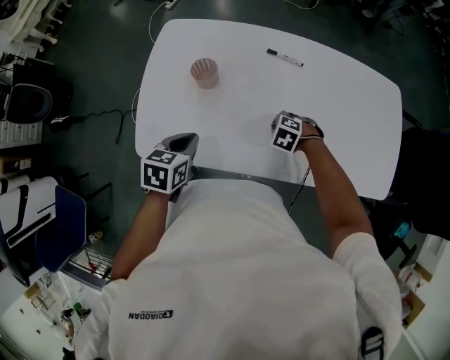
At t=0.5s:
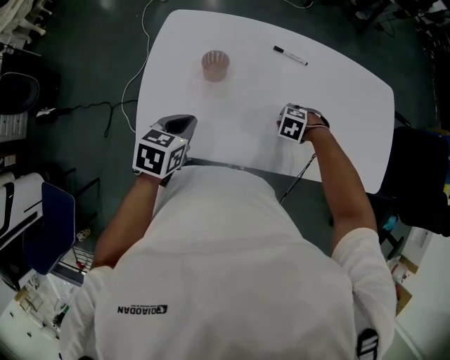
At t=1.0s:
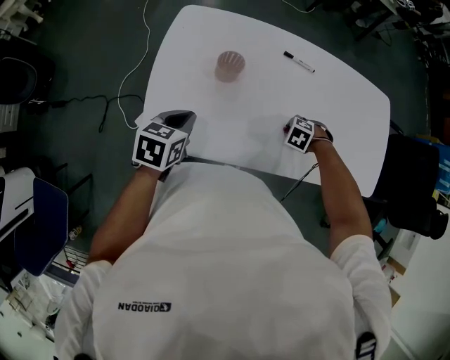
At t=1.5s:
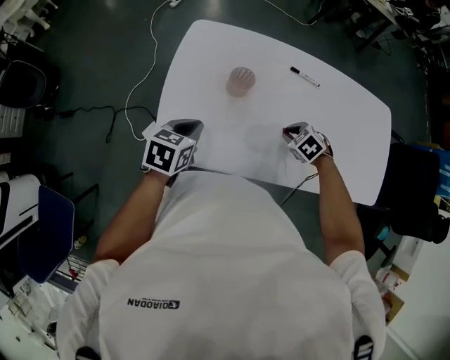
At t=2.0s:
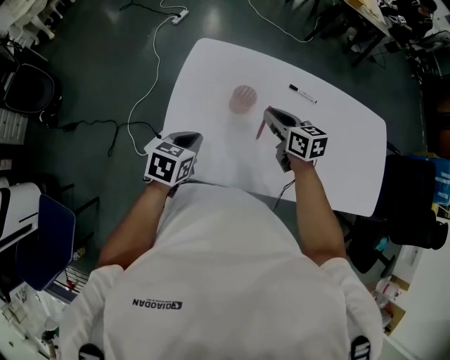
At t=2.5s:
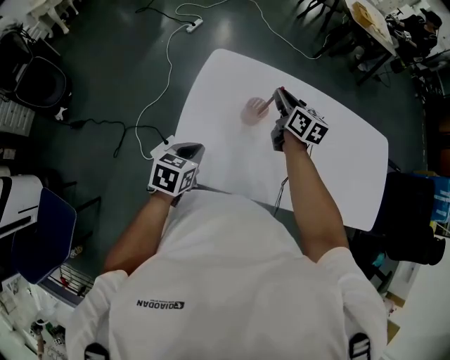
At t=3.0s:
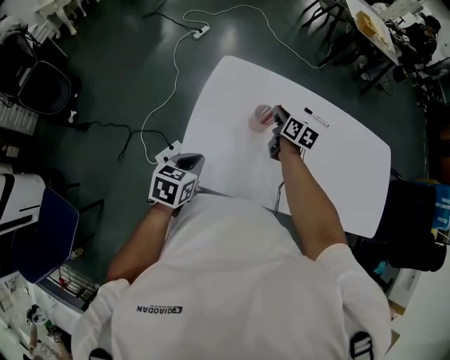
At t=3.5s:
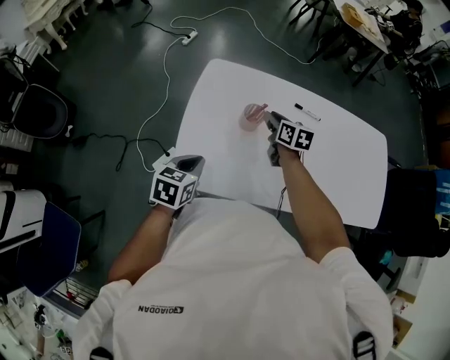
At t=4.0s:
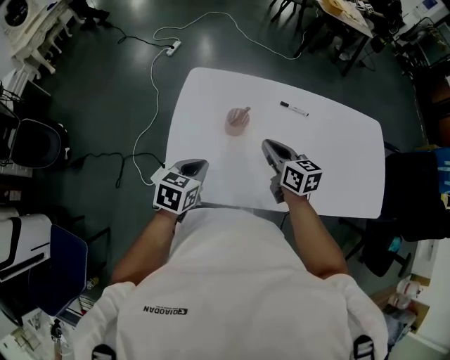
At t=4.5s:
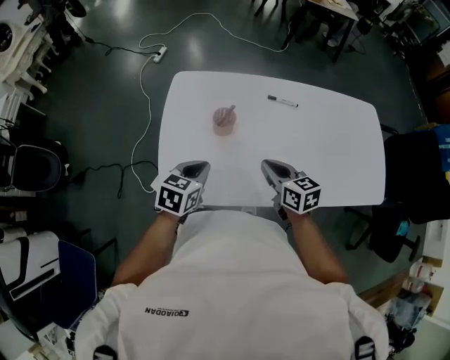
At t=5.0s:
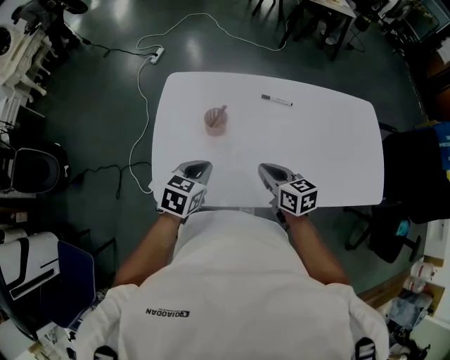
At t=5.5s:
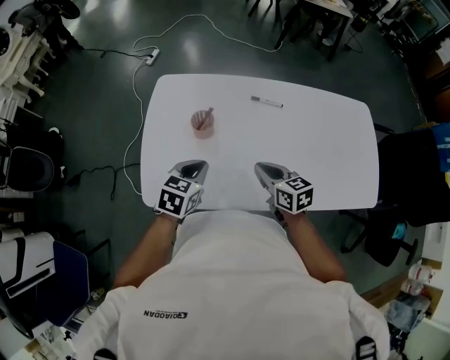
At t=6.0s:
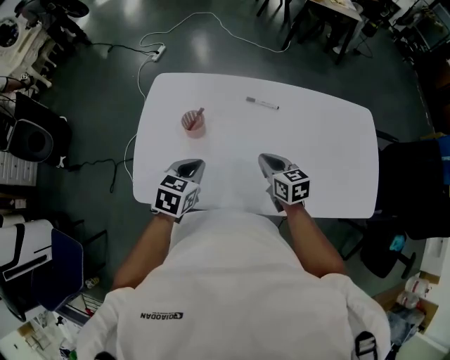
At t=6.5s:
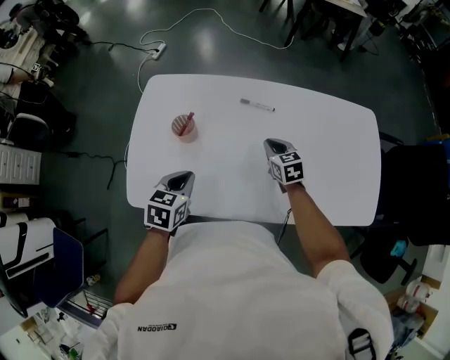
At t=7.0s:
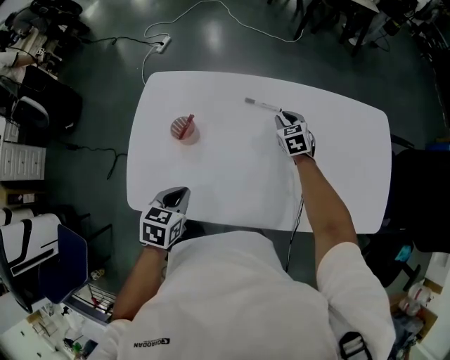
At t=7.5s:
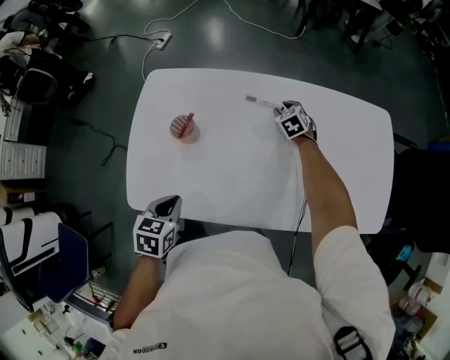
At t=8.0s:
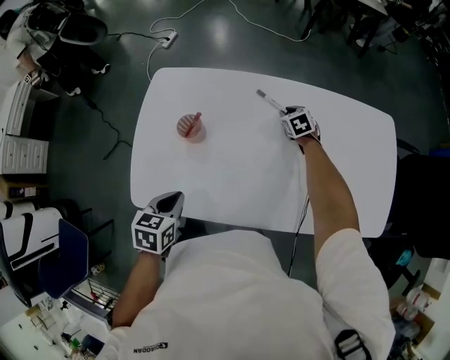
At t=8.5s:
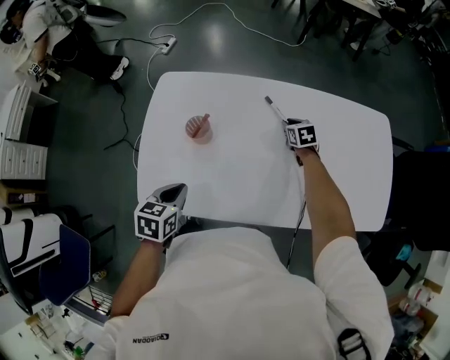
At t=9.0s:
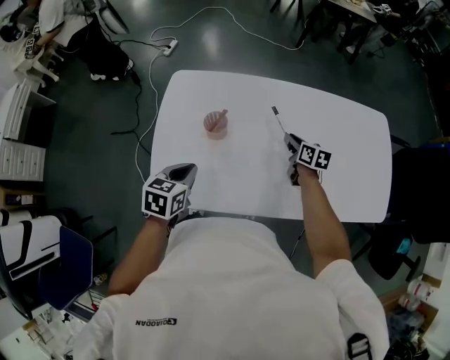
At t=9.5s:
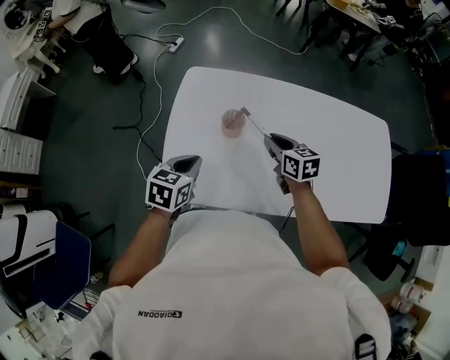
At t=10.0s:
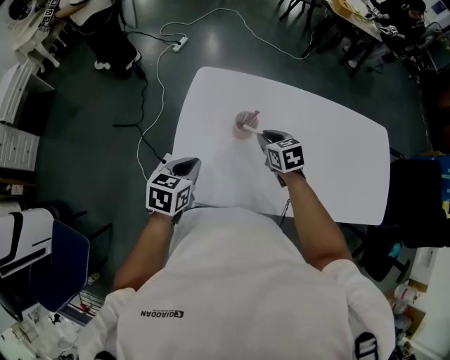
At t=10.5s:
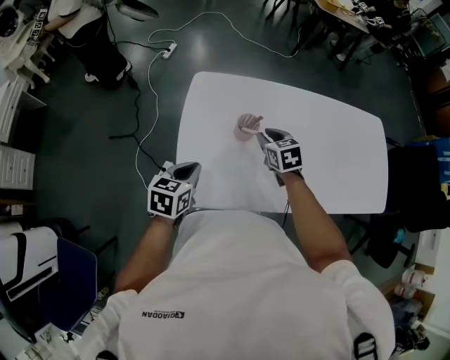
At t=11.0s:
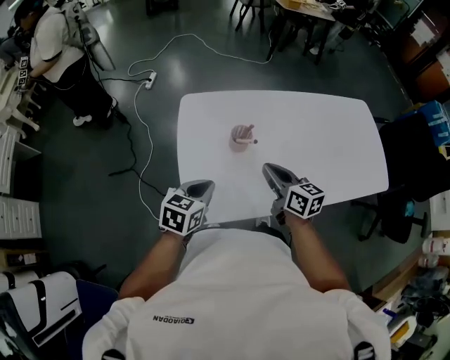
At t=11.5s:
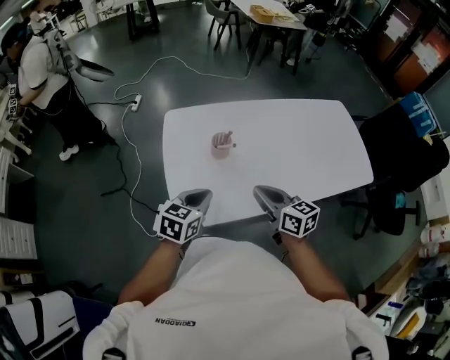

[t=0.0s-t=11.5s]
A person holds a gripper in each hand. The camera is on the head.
t=0.0s to t=2.0s: The right gripper changes place by roughly 30 cm, points its fingers approximately 50 degrees further upward, and opens and closes again, while the left gripper shifts by about 15 cm.
t=2.0s to t=4.0s: The right gripper travels backward by some 5 cm; the left gripper goes to the left and returns, approximately 5 cm each way.
t=4.0s to t=6.0s: Both grippers travel together to the right, approximately 20 cm.
t=6.0s to t=7.5s: The left gripper moves some 5 cm. The right gripper moves forward and downward, roughly 30 cm, swivels approximately 40 degrees, and opens up.
t=7.5s to t=9.5s: The right gripper travels to the left, backward and upward by about 35 cm, and swivels roughly 40 degrees. Meanwhile the left gripper shifts approximately 15 cm to the left.
t=9.5s to t=11.5s: The right gripper travels backward and upward by approximately 25 cm. The left gripper goes approximately 10 cm backward, goes to the left and returns, approximately 10 cm each way, and rotates roughly 20 degrees.

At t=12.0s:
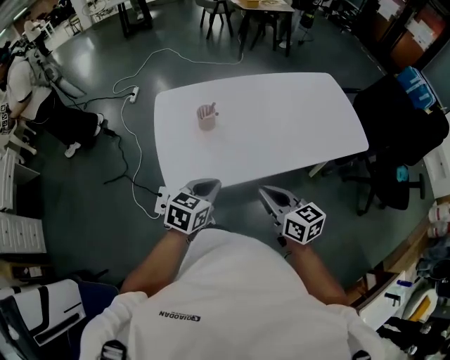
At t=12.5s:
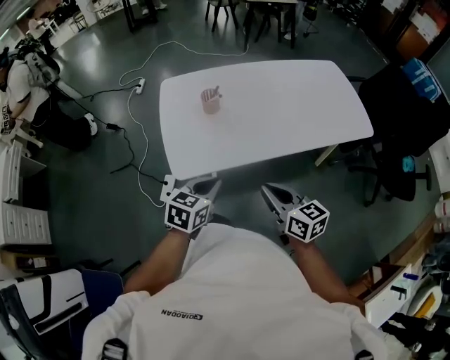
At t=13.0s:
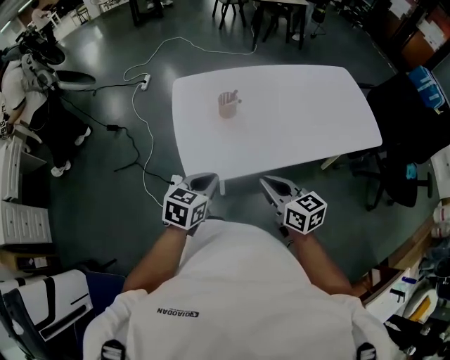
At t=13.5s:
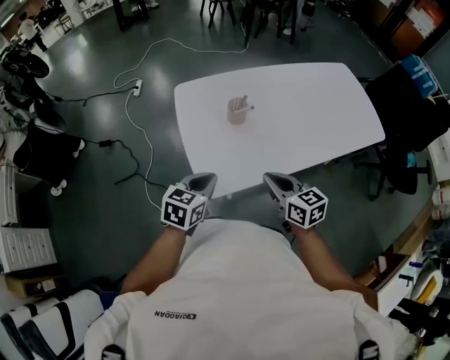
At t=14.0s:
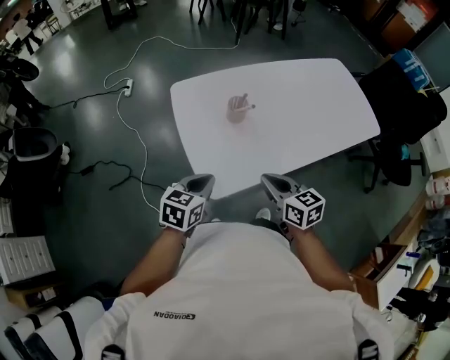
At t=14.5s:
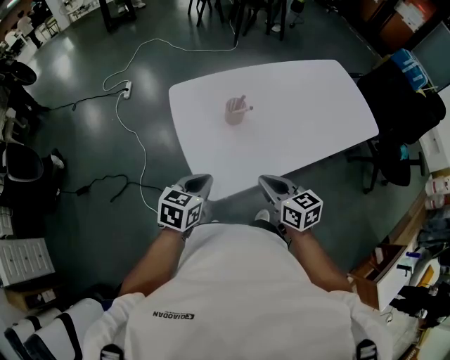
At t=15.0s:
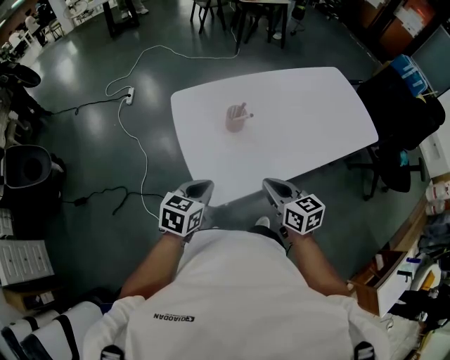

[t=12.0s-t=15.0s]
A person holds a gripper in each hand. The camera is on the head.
t=12.0s to t=13.5s: Both grippers move to the left, some 15 cm.
t=13.5s to t=15.0s: The grippers stay close to where they were, moving slightly.

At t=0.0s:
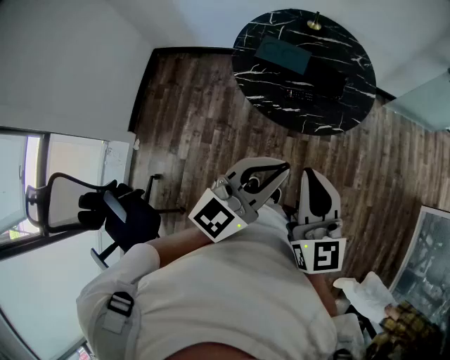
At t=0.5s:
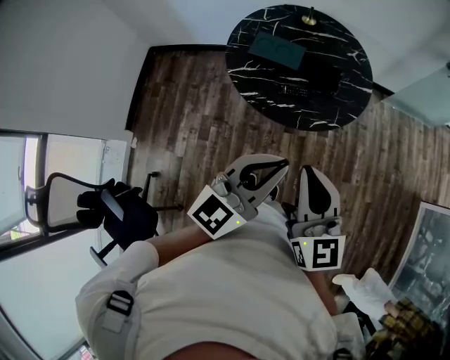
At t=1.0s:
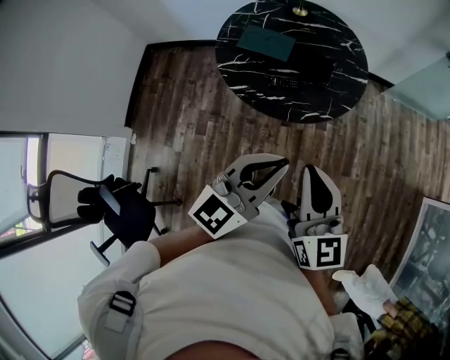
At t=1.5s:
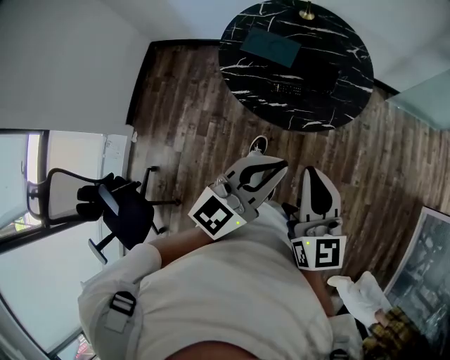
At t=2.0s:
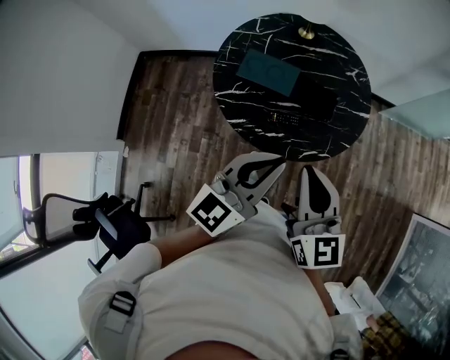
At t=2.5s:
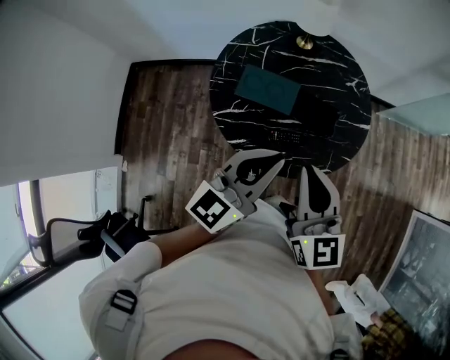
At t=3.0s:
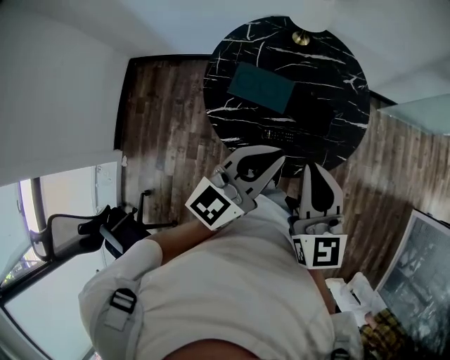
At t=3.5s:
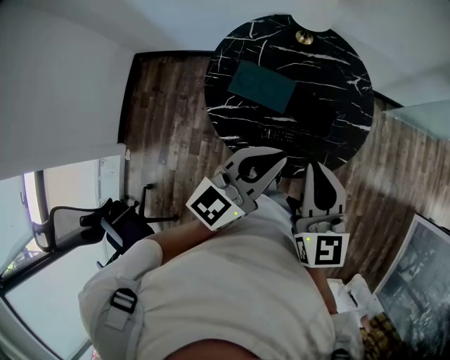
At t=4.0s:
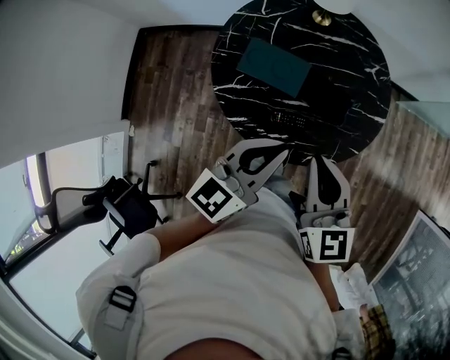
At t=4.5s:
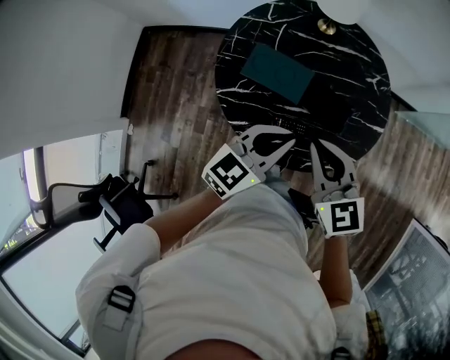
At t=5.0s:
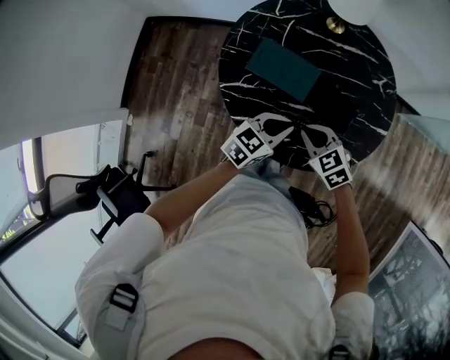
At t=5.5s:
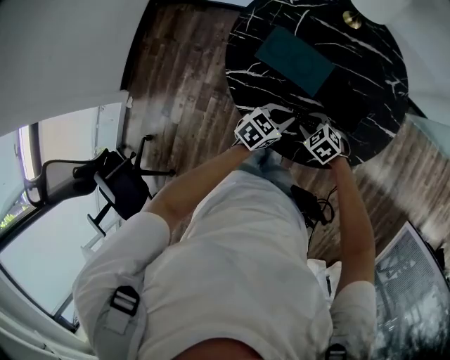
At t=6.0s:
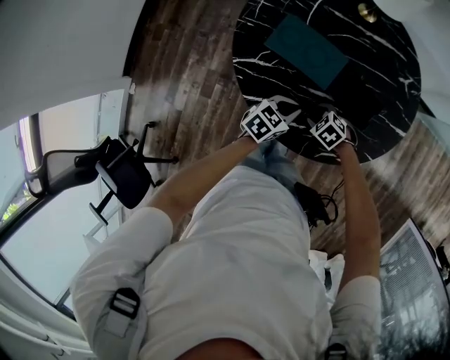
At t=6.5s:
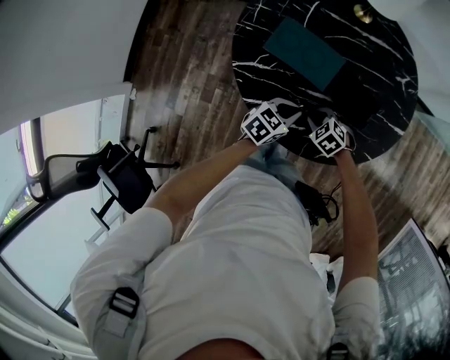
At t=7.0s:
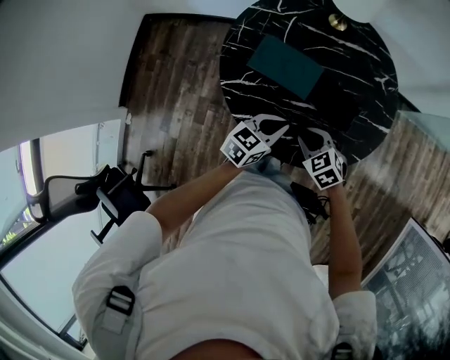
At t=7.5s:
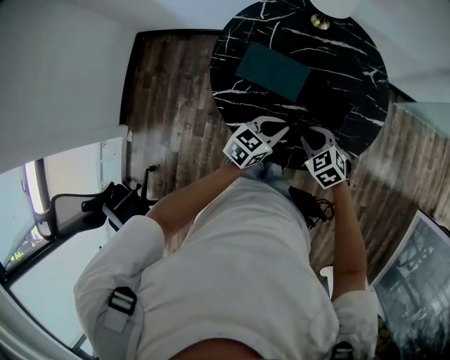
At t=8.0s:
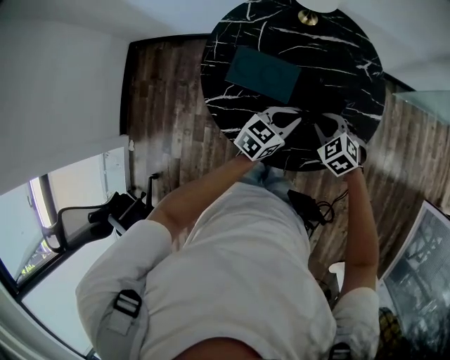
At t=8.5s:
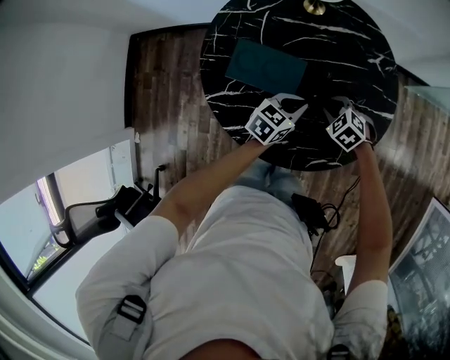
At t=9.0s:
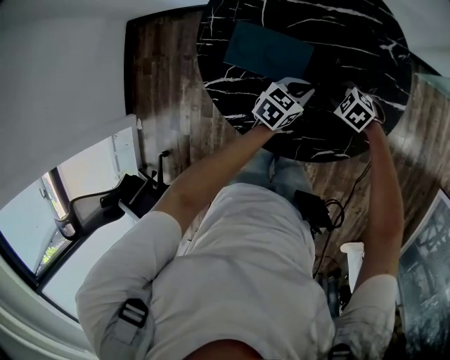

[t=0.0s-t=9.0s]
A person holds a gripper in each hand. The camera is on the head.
t=0.0s to t=2.0s: Both grippers move forward, some 20 cm.
t=2.0s to t=4.5s: Both grippers travel together forward and downward, approximately 20 cm. The right gripper changes its angle by roughly 20 degrees.
t=4.5s to t=7.0s: Both grippers move downward, about 20 cm. The right gripper tilts its fingers roughly 30 degrees downward, and opens, then closes again.
t=7.0s to t=9.0s: The left gripper ends up approximately 20 cm from where it was, while the right gripper shifts by some 20 cm.

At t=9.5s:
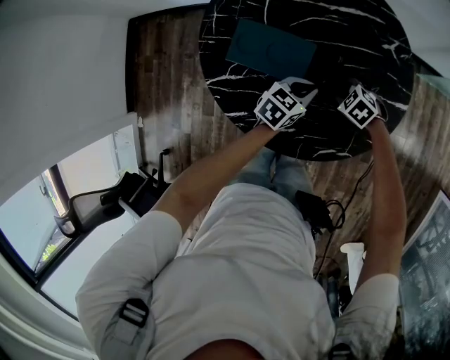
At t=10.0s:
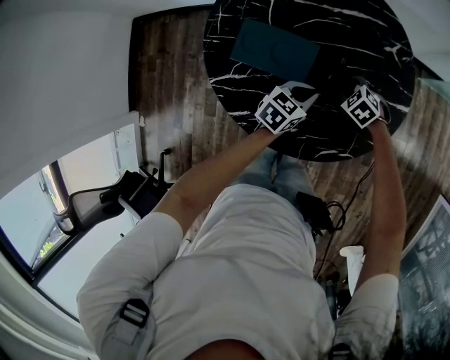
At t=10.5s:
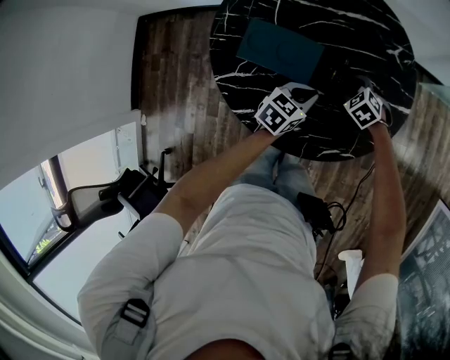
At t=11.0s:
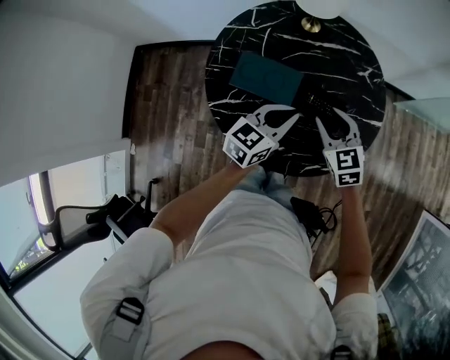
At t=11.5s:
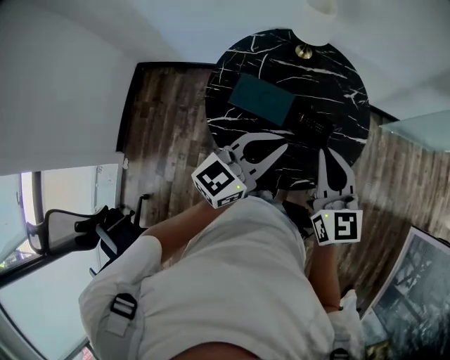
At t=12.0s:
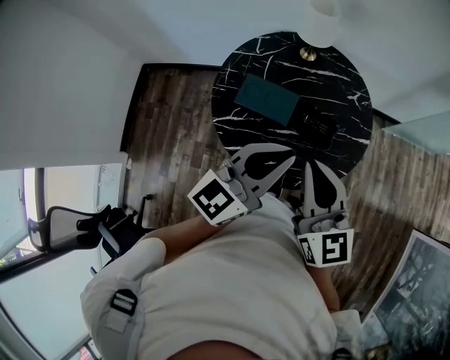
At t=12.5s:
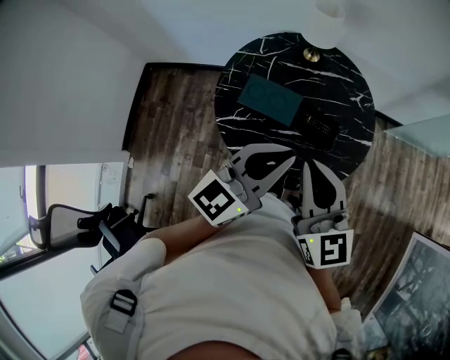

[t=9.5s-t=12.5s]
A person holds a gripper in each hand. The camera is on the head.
t=9.5s to t=11.0s: Both grippers travel together upward, some 20 cm. The right gripper angles its fingers upward, by approximately 40 degrees; the left gripper swivels about 20 degrees.
t=11.0s to t=12.5s: Both grippers travel together upward and backward, about 25 cm. The left gripper rotates roughly 20 degrees. The right gripper swivels approximately 30 degrees, and closes up.
